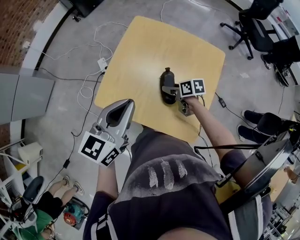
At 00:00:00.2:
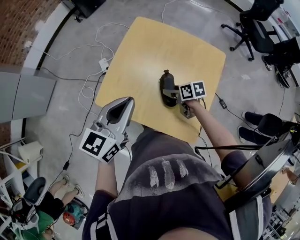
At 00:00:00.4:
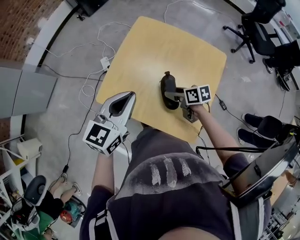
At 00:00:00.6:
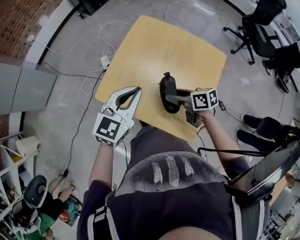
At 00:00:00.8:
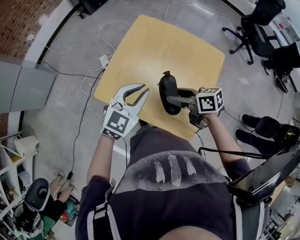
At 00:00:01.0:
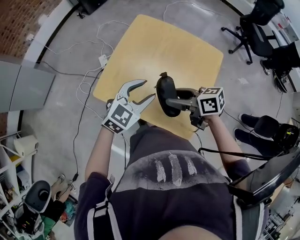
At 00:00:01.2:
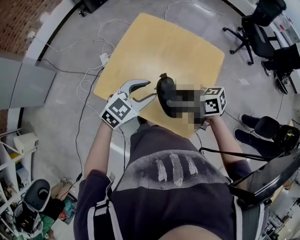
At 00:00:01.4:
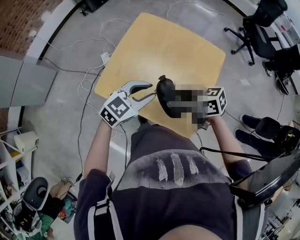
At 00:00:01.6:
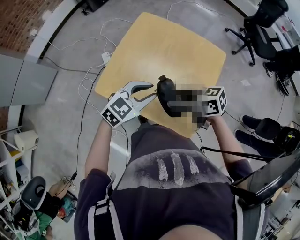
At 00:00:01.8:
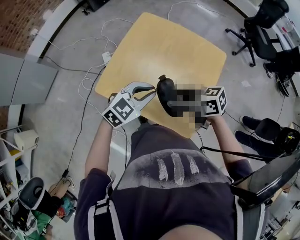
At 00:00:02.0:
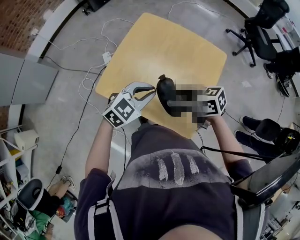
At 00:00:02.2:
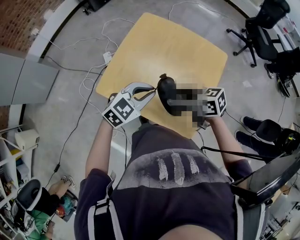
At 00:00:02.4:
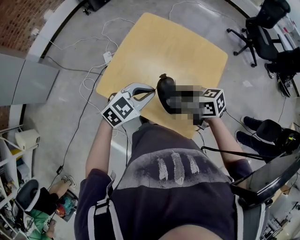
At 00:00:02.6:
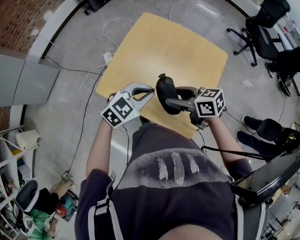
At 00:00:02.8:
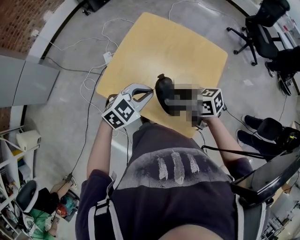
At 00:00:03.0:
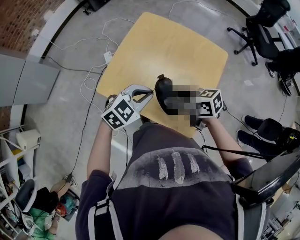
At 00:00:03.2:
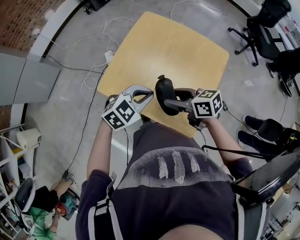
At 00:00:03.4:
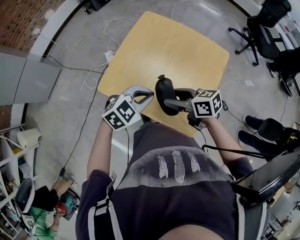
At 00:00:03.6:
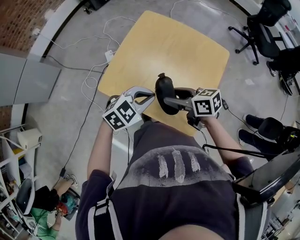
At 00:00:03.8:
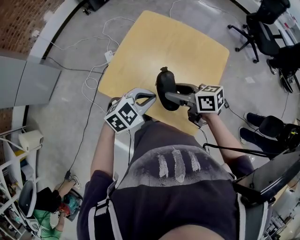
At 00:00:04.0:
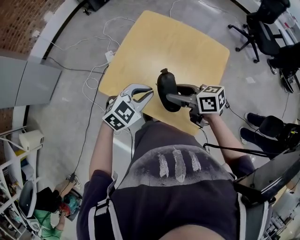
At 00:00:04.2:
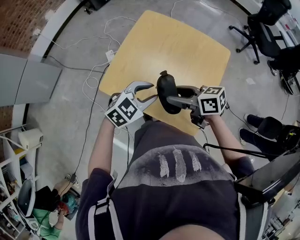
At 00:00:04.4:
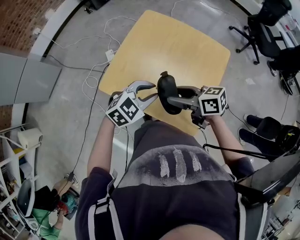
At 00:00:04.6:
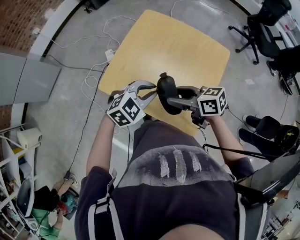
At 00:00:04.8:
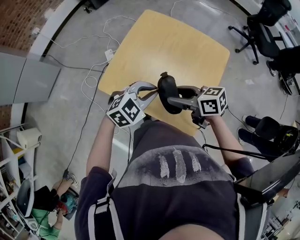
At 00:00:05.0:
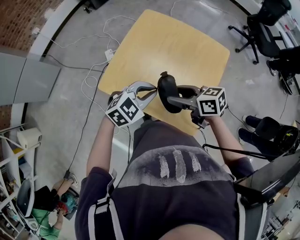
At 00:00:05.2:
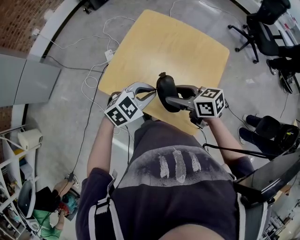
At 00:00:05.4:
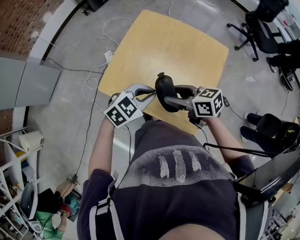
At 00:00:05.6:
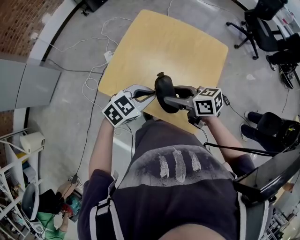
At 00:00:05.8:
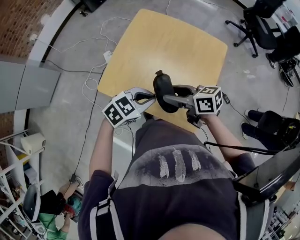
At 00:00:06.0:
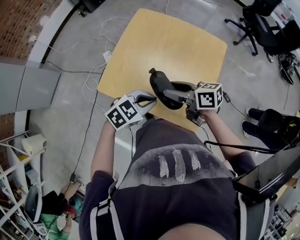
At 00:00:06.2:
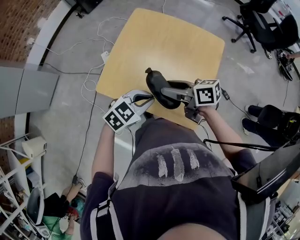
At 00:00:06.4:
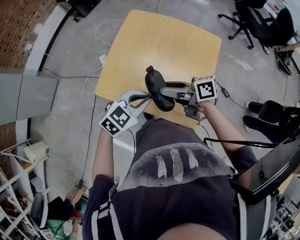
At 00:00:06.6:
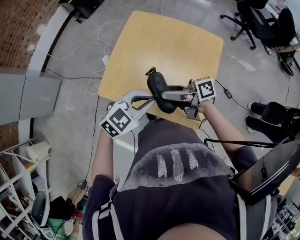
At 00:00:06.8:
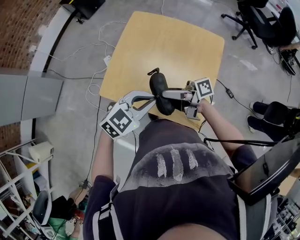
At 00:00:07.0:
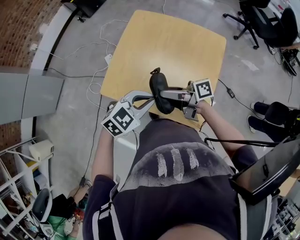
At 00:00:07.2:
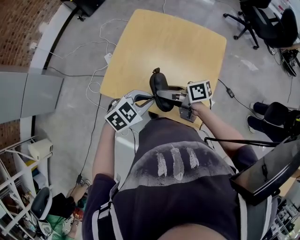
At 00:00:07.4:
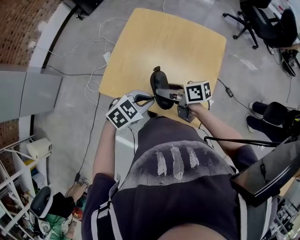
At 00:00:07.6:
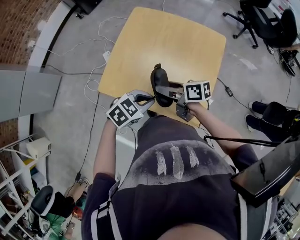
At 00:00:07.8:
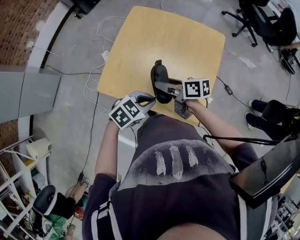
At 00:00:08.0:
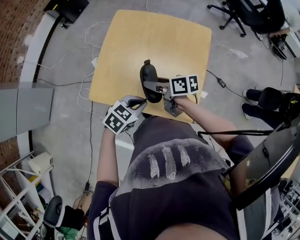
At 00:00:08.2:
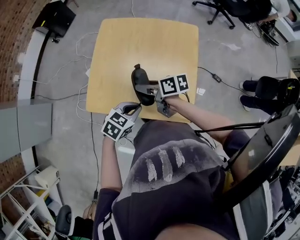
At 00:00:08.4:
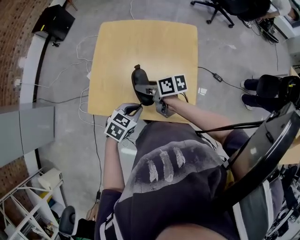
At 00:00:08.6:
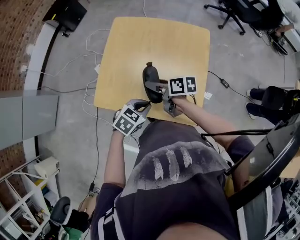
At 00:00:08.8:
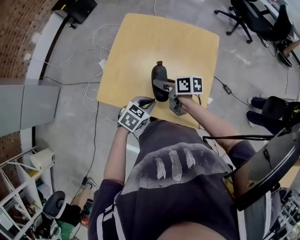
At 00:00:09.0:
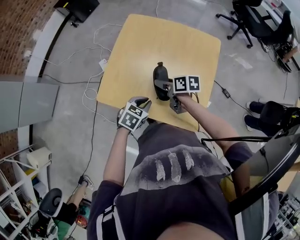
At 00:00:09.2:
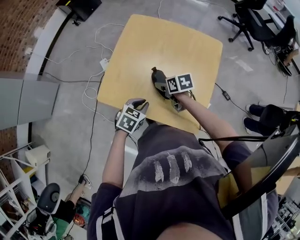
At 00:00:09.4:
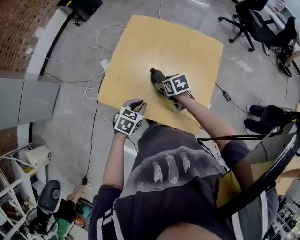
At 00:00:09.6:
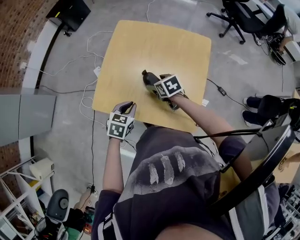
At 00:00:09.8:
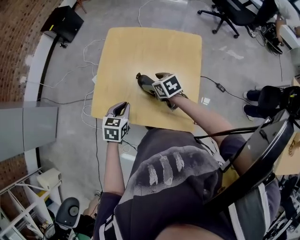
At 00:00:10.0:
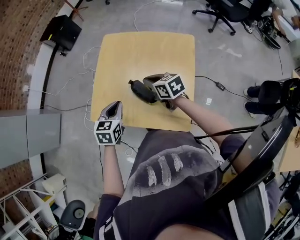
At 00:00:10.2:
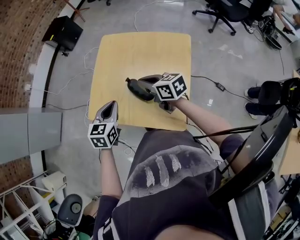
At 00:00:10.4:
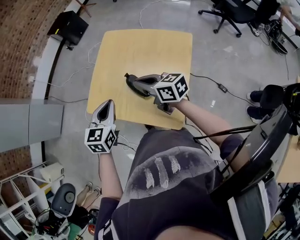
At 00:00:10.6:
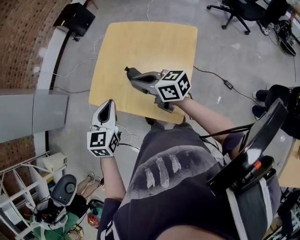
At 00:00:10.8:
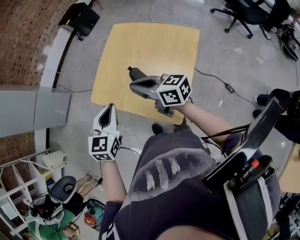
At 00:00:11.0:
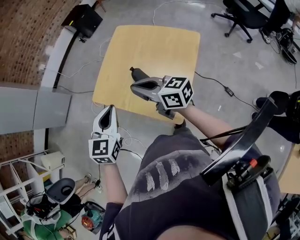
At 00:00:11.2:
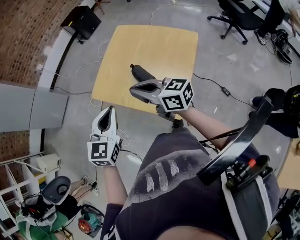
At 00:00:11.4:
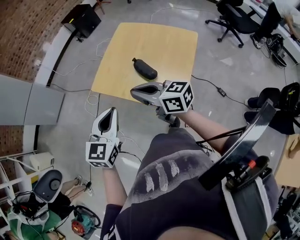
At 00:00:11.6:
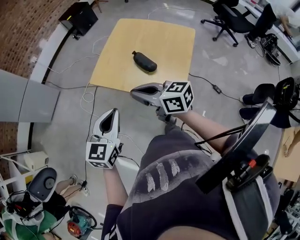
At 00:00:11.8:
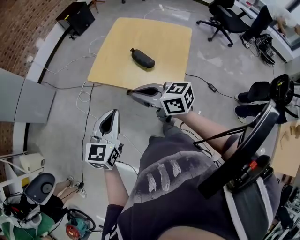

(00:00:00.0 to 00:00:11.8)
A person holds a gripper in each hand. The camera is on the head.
00:00:00.0 - 00:00:01.4: The left gripper shifts about 10 cm downward, changes its angle by some 30 degrees, and opens its fingers. The right gripper is displaced upward by some 20 cm, and swivels about 40 degrees.
00:00:01.4 - 00:00:03.0: The left gripper closes up.
00:00:03.0 - 00:00:04.4: The left gripper opens up.
00:00:04.4 - 00:00:06.0: The left gripper closes its fingers.
00:00:06.0 - 00:00:07.4: The right gripper moves about 5 cm.
00:00:07.4 - 00:00:08.8: The right gripper moves about 10 cm. The left gripper is displaced downward by roughly 5 cm.
00:00:08.8 - 00:00:10.4: The two grippers go approximately 15 cm upward. The right gripper changes its angle by approximately 40 degrees, and closes; the left gripper swivels approximately 40 degrees.
00:00:10.4 - 00:00:11.8: The left gripper is displaced backward and to the left by roughly 25 cm, while the right gripper shifts some 30 cm to the left and backward.

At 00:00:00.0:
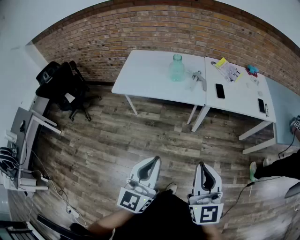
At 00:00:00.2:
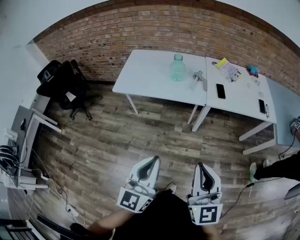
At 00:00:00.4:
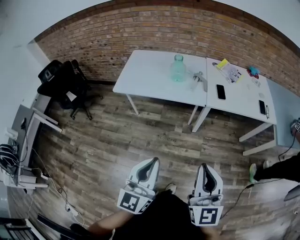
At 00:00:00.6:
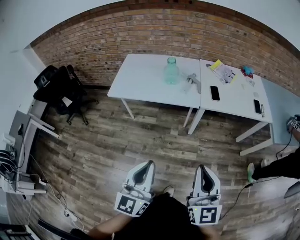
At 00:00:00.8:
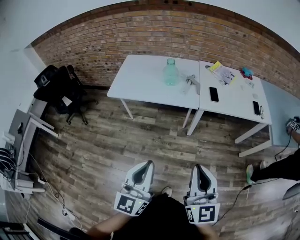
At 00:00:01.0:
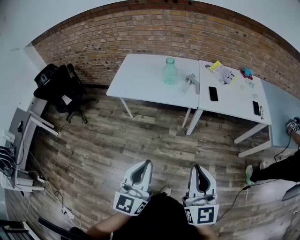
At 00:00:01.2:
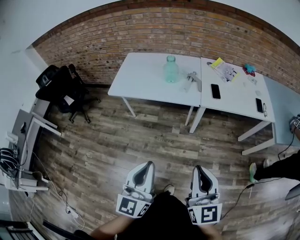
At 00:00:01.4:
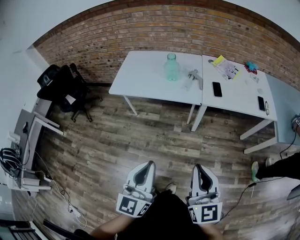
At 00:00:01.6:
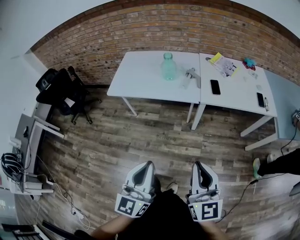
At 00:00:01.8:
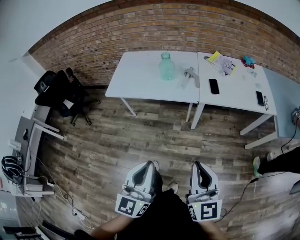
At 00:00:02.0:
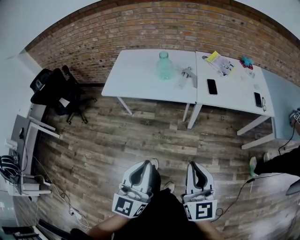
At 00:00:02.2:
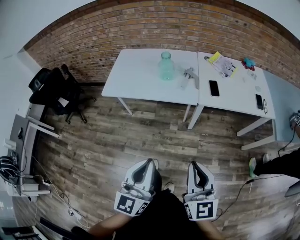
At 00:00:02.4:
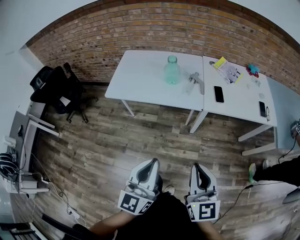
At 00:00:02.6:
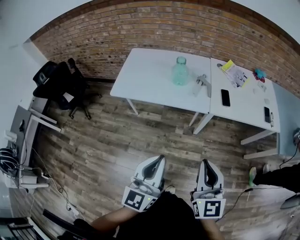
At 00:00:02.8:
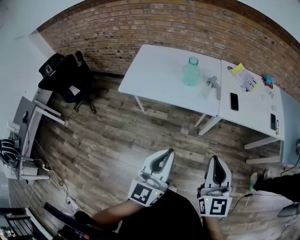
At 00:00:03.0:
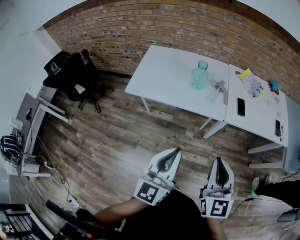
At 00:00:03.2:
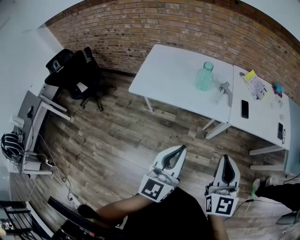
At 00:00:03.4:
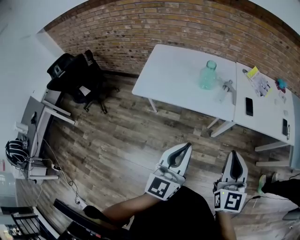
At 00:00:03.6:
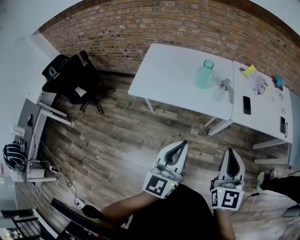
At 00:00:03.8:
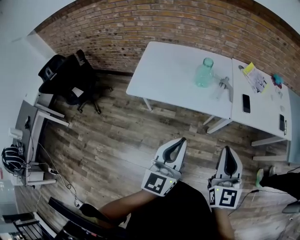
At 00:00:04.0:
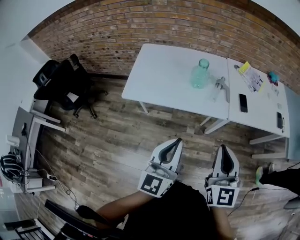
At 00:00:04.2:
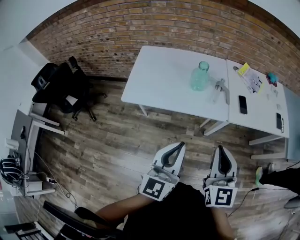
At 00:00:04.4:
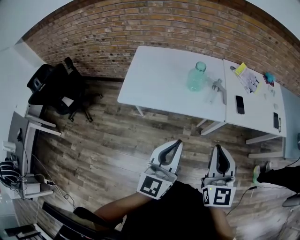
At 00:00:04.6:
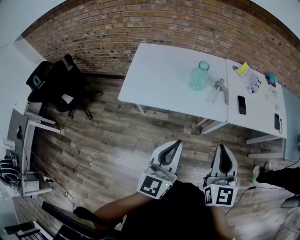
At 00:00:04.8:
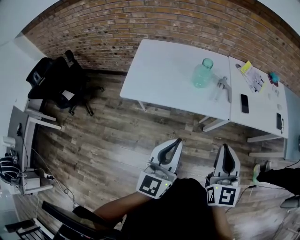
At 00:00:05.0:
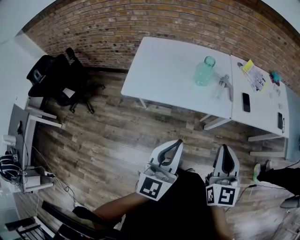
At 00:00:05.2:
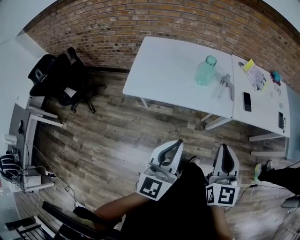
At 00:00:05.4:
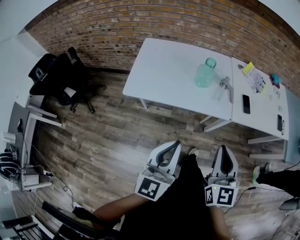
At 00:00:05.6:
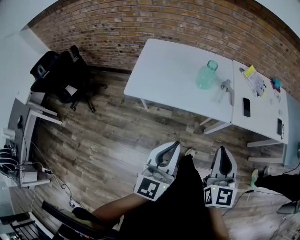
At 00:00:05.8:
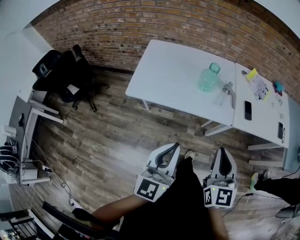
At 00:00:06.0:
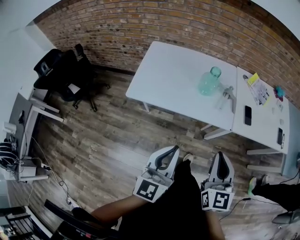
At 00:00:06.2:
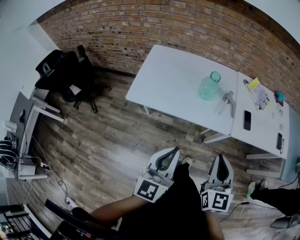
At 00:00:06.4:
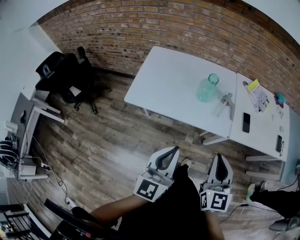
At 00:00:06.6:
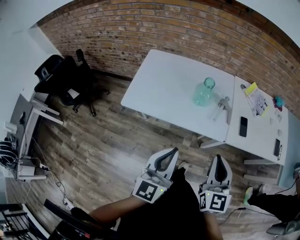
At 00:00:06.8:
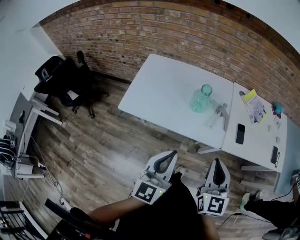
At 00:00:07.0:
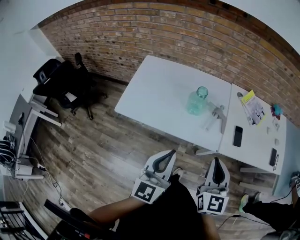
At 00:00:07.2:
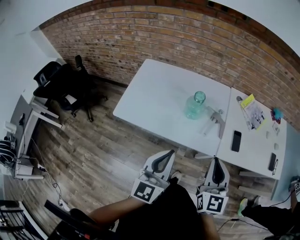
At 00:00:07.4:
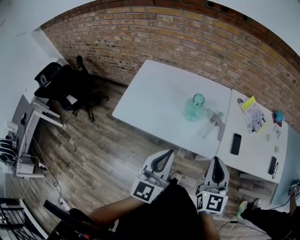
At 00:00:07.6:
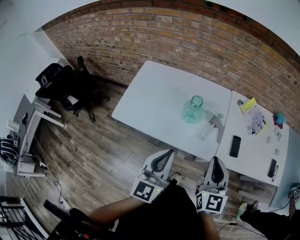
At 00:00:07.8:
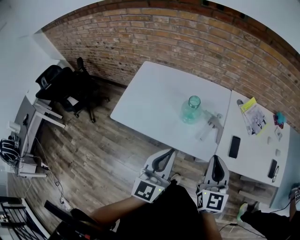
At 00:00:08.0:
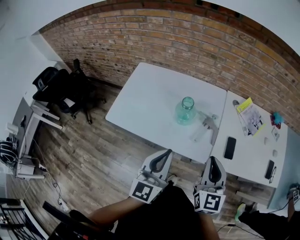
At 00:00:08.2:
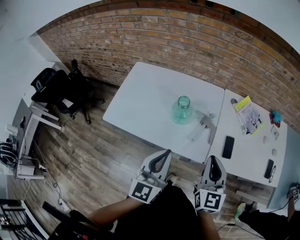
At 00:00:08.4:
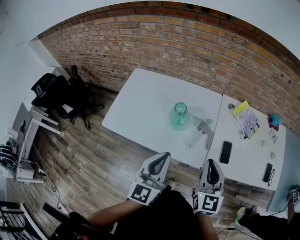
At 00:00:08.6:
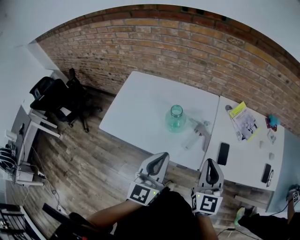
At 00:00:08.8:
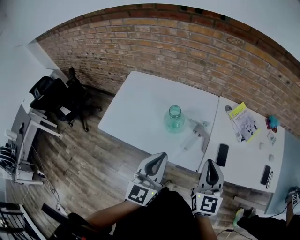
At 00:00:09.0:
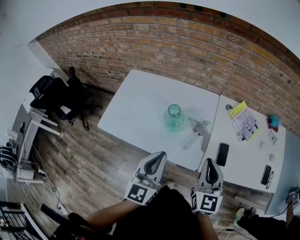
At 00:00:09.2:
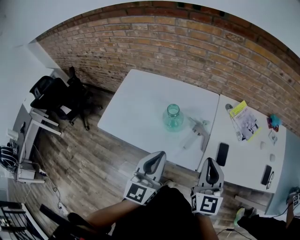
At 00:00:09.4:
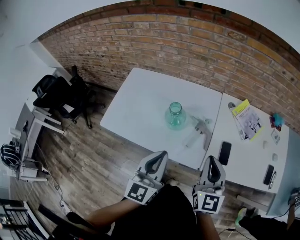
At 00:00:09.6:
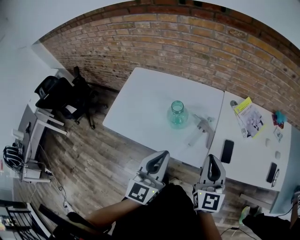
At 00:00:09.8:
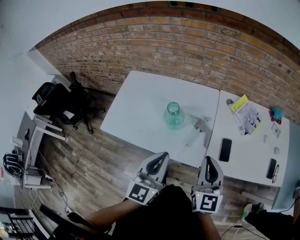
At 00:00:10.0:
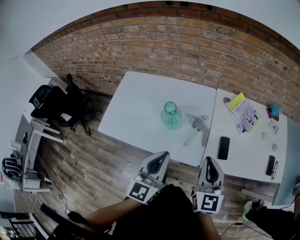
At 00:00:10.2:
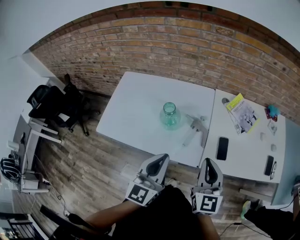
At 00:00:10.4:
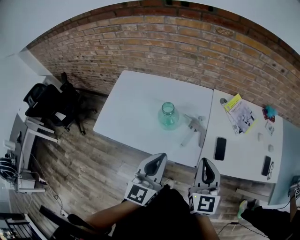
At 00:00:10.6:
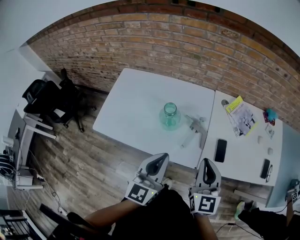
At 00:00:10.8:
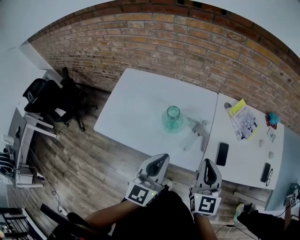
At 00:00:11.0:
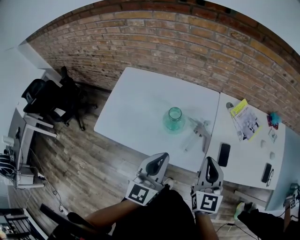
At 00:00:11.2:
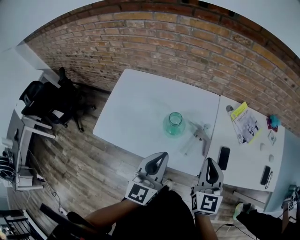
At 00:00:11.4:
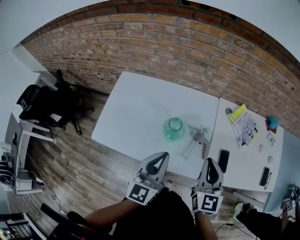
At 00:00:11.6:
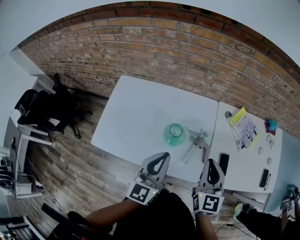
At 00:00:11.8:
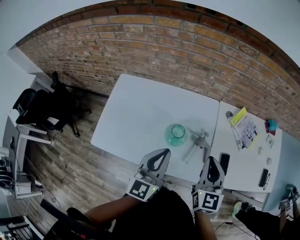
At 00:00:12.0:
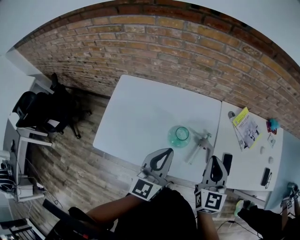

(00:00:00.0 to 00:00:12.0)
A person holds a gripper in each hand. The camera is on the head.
00:00:00.0 - 00:00:01.6: The right gripper is displaced to the right by some 5 cm.
00:00:01.6 - 00:00:03.0: The right gripper moves forward and to the left, about 15 cm. The left gripper travels forward by roughly 15 cm.
00:00:03.0 - 00:00:04.4: Both grippers travel together forward and to the left, some 10 cm.
00:00:04.4 - 00:00:06.0: The grippers stay close to where they were, moving slightly.
00:00:06.0 - 00:00:07.6: The grippers both shift forward and to the right by some 20 cm.
00:00:07.6 - 00:00:09.0: The grippers both shift to the right and forward by some 10 cm.
00:00:09.0 - 00:00:10.4: The grippers make only small movements.
00:00:10.4 - 00:00:12.0: Both grippers move forward and to the left, approximately 15 cm.
